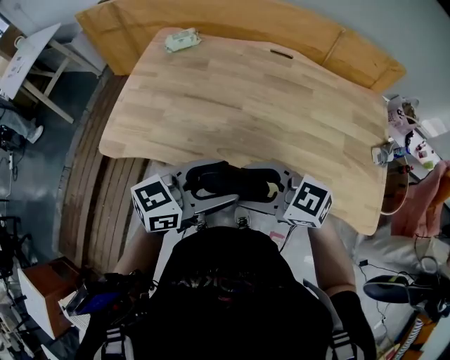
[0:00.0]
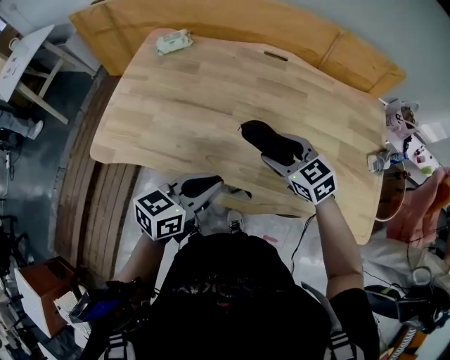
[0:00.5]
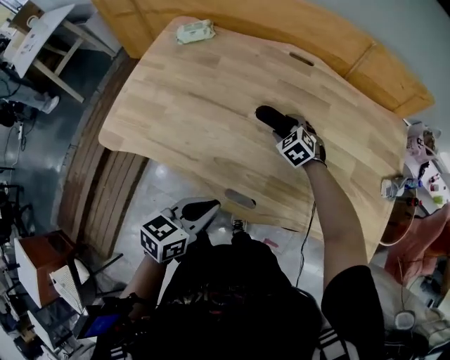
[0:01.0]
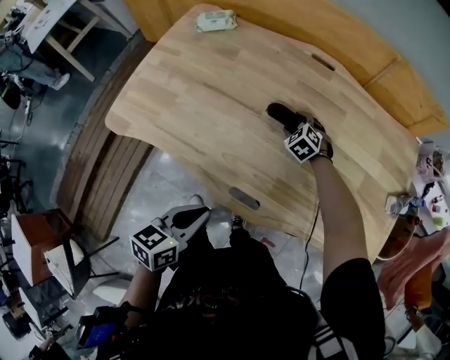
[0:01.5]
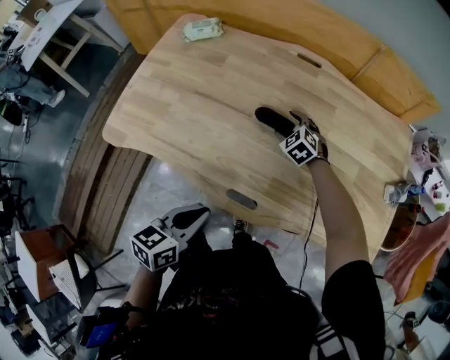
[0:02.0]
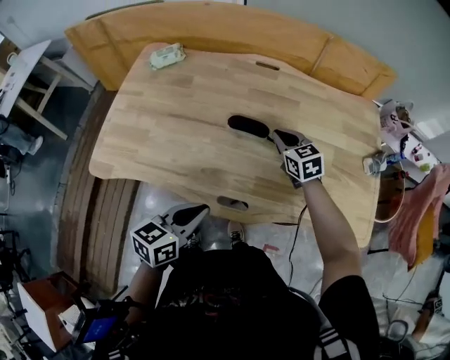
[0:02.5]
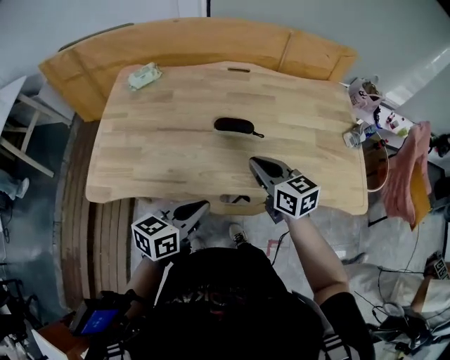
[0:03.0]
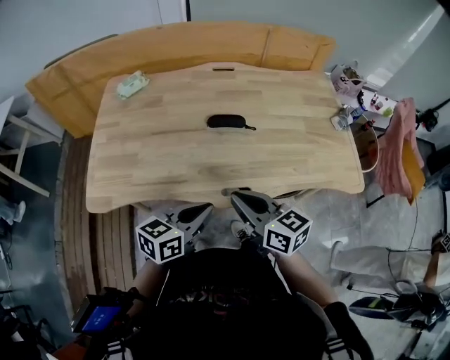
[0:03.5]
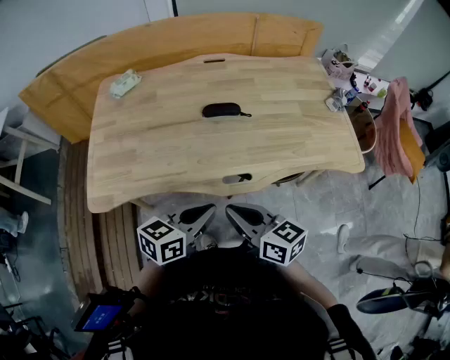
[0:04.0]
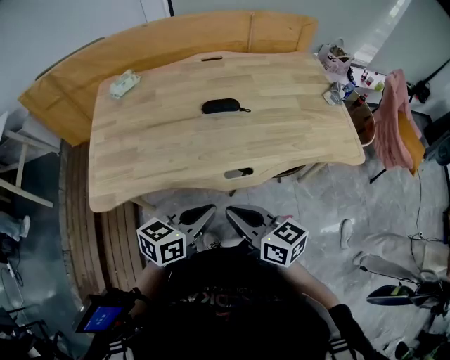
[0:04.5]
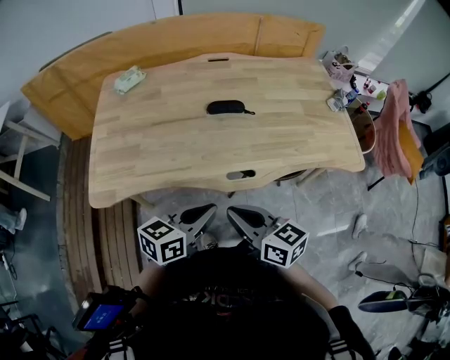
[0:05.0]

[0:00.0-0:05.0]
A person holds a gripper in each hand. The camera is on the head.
0:00.0 to 0:02.5: The right gripper changes place by about 30 cm, swivels some 50 degrees, and closes its fingers. Meanwhile the left gripper moves downward, some 10 cm, rotates about 30 degrees, and closes up.
0:02.5 to 0:05.0: The left gripper shifts about 10 cm backward, and turns by approximately 20 degrees. The right gripper goes some 40 cm backward, and swivels about 40 degrees.

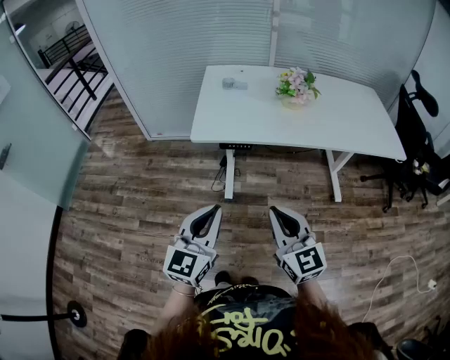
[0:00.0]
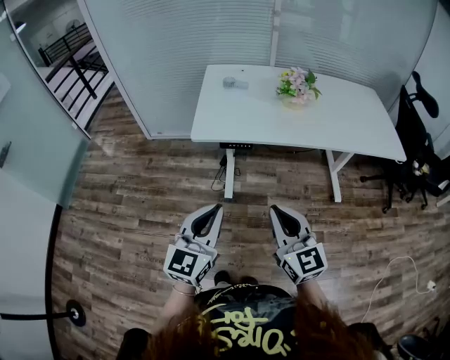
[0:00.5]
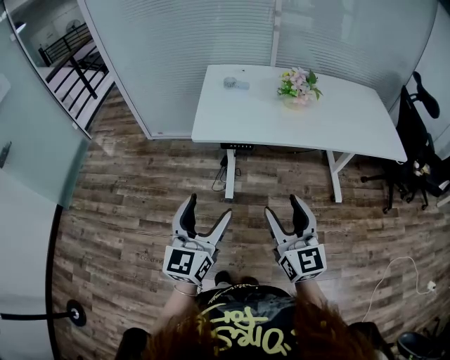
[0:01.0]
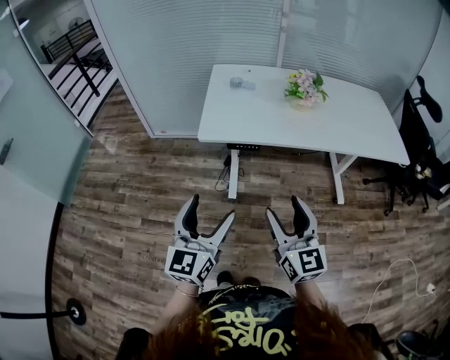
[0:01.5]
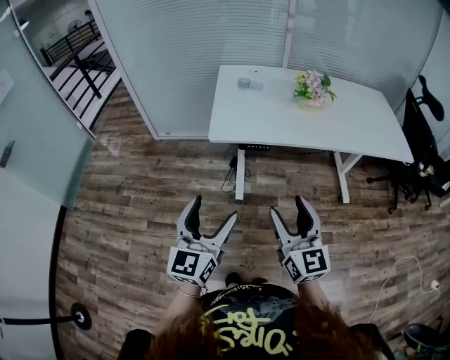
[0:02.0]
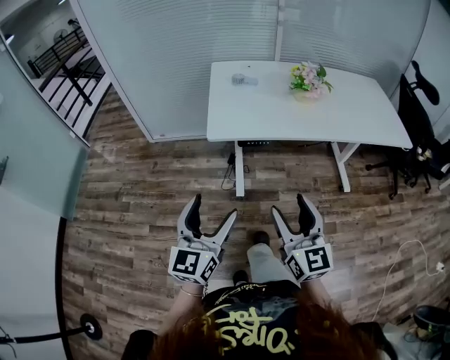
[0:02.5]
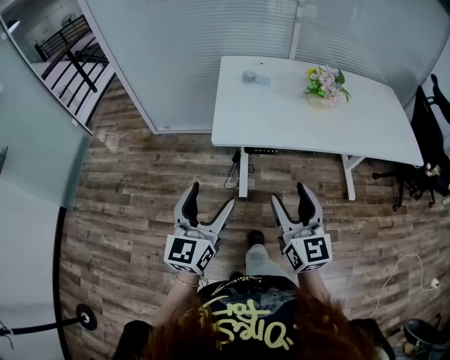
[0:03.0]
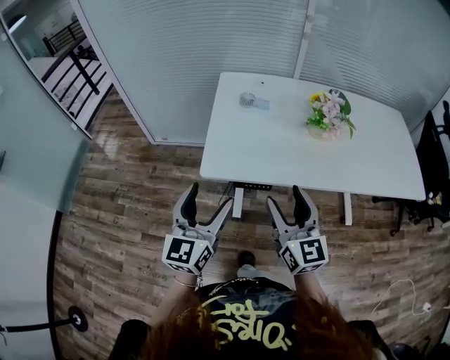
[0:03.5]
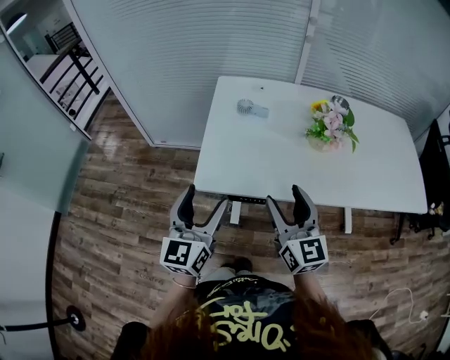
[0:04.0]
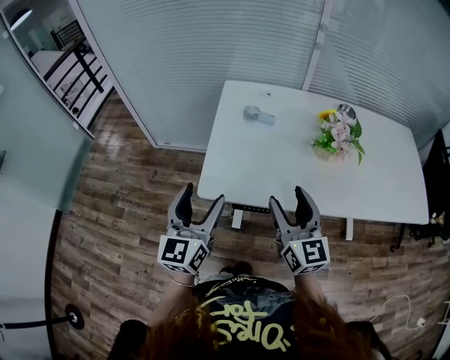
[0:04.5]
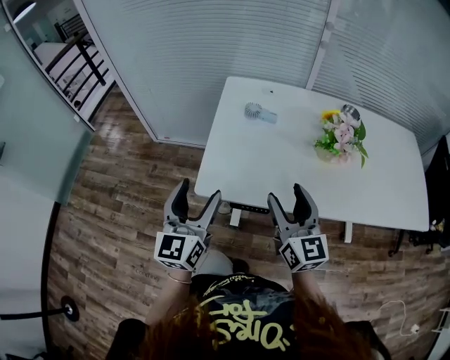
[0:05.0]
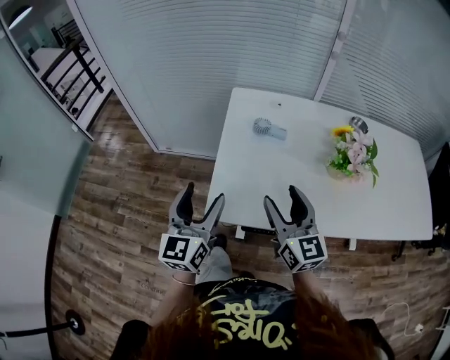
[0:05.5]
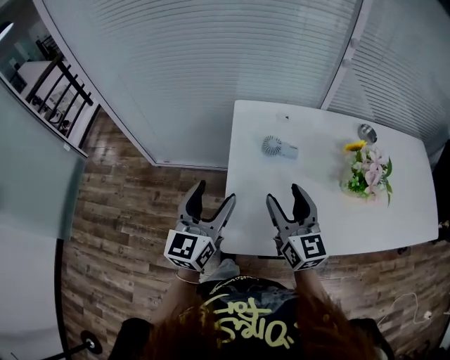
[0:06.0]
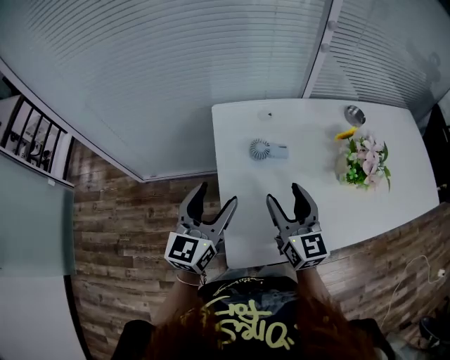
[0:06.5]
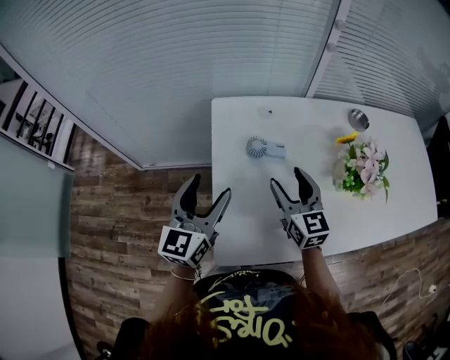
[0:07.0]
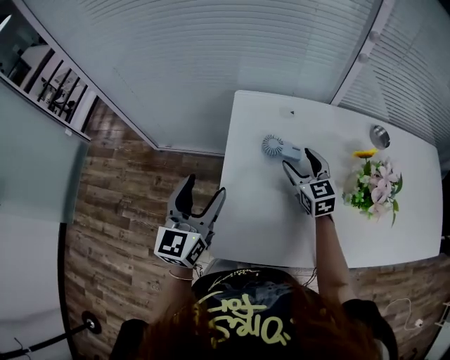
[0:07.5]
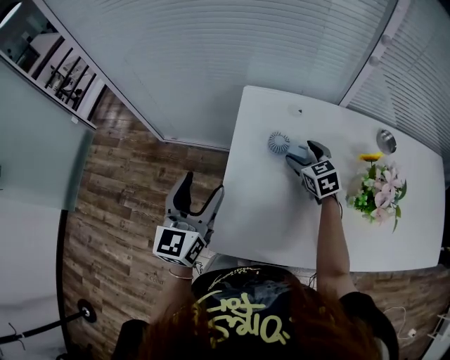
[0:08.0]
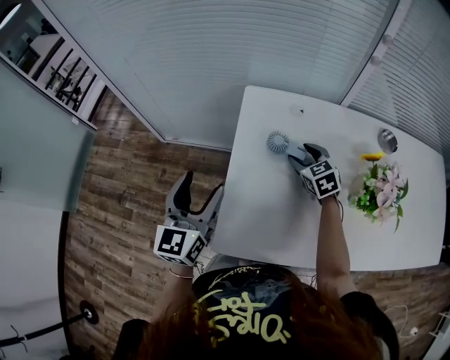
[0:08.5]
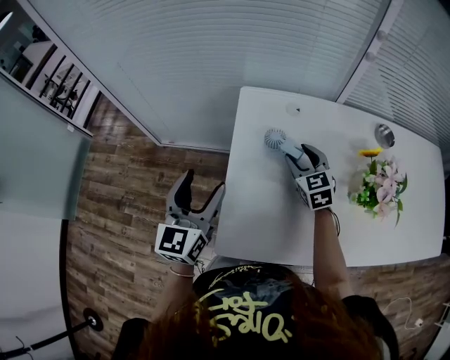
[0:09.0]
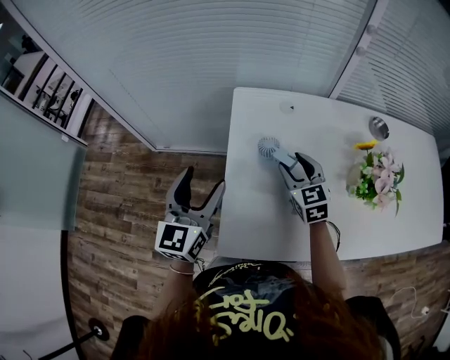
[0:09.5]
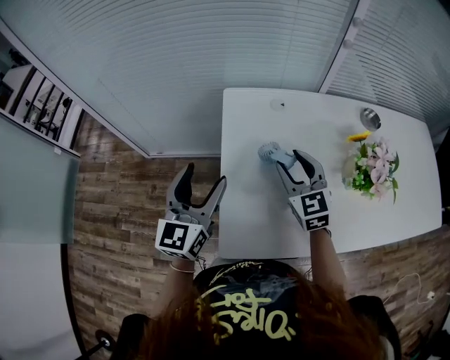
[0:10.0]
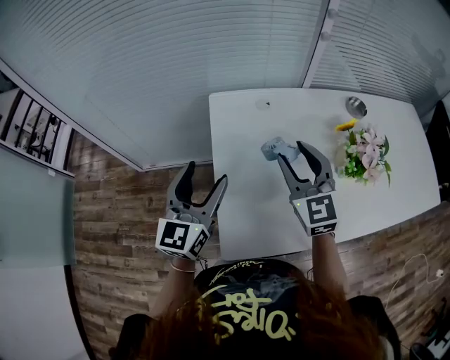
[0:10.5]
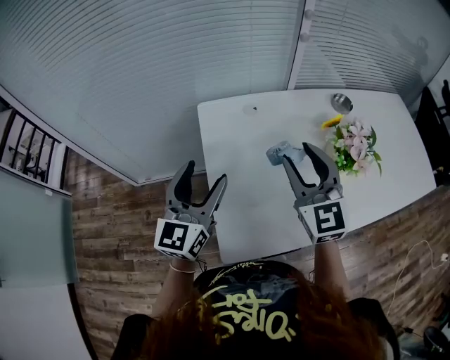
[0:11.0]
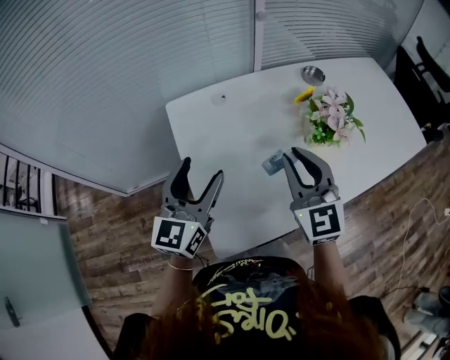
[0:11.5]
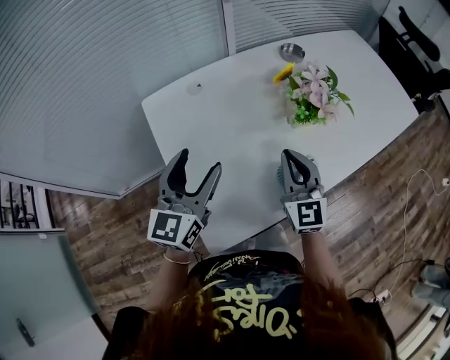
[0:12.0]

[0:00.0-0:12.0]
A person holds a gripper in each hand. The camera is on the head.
0:00.0 to 0:02.0: The right gripper shifts by some 5 cm, and opens up. The left gripper heads to the left, covering roughly 10 cm, and opens up.
0:02.0 to 0:04.0: Both grippers travel together forward, some 30 cm.
0:04.0 to 0:06.0: The left gripper heads forward, covering some 25 cm. The right gripper travels forward and to the left by roughly 25 cm.
0:06.0 to 0:08.0: The right gripper shifts about 25 cm forward and downward, and points its fingers about 30 degrees further downward.
0:08.0 to 0:10.0: The right gripper moves upward and backward, roughly 10 cm, changes its angle by roughly 20 degrees, and closes its fingers.
0:10.0 to 0:12.0: The left gripper ends up about 15 cm from where it was, and changes its angle by some 30 degrees; the right gripper goes upward and returns, about 10 cm each way, turns by approximately 40 degrees, and closes.

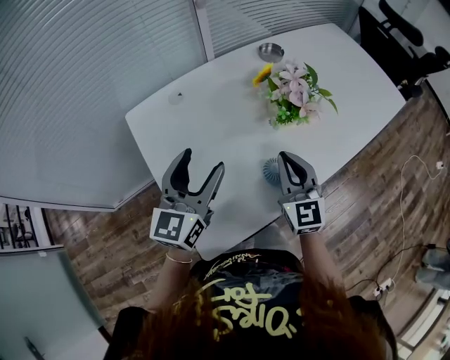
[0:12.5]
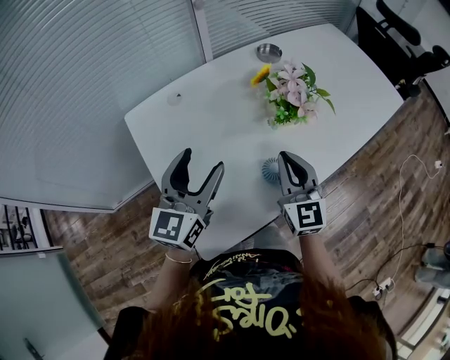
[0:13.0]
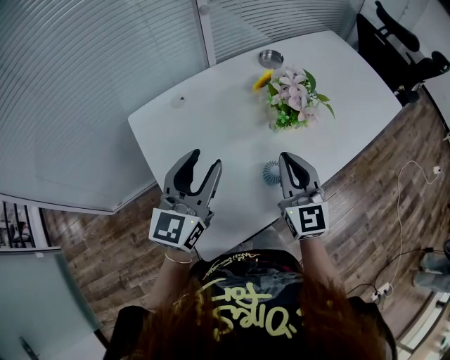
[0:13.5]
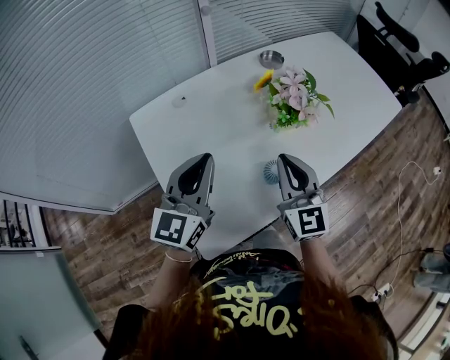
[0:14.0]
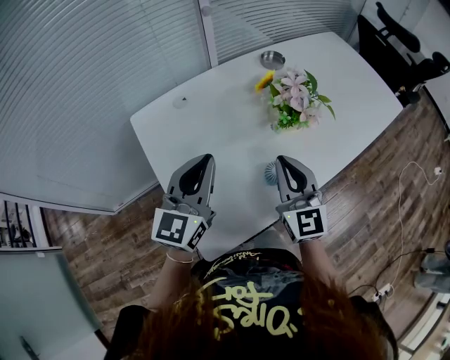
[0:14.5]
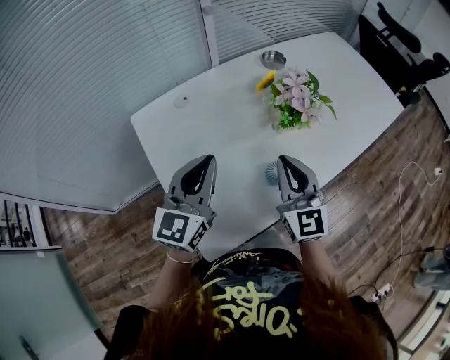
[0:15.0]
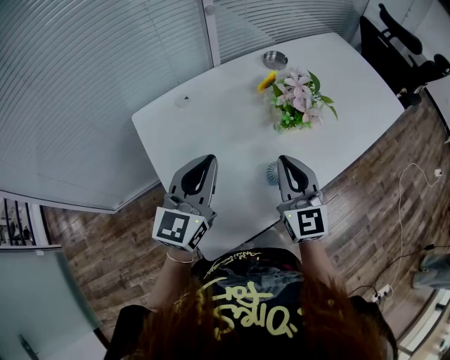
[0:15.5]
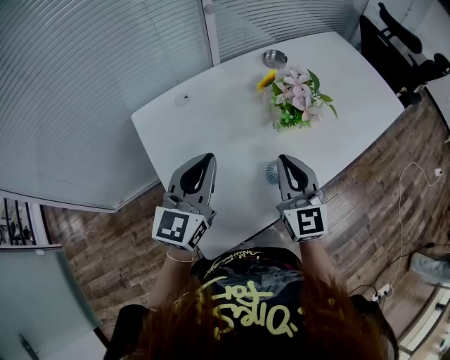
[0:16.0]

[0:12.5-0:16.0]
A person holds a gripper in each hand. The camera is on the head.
0:12.5 to 0:14.5: The left gripper closes; the right gripper ends up approximately 5 cm from where it was.
0:14.5 to 0:16.0: Neither gripper changes place.

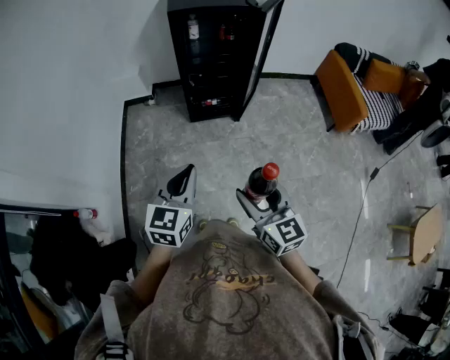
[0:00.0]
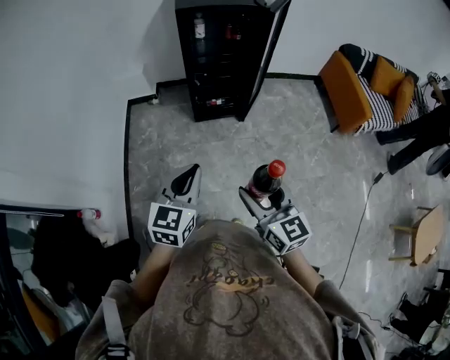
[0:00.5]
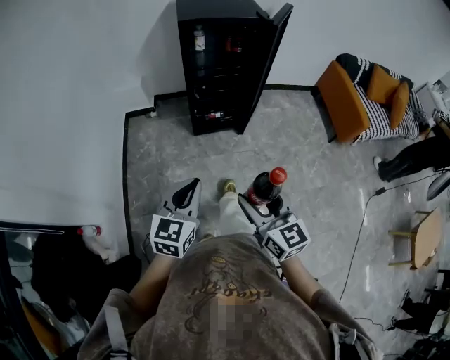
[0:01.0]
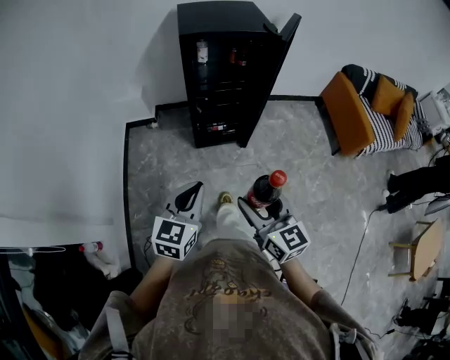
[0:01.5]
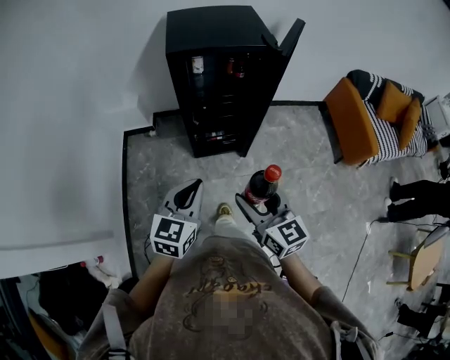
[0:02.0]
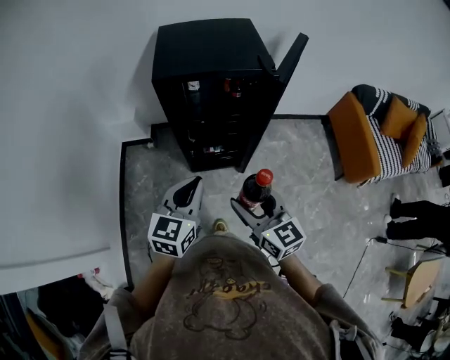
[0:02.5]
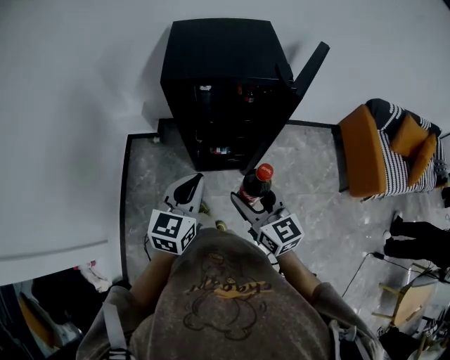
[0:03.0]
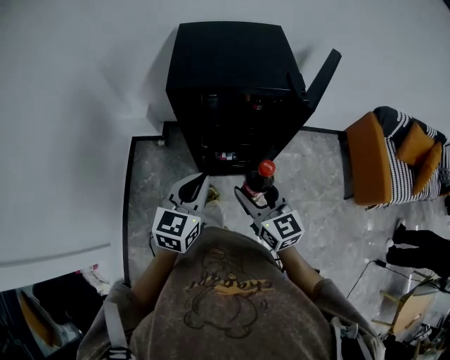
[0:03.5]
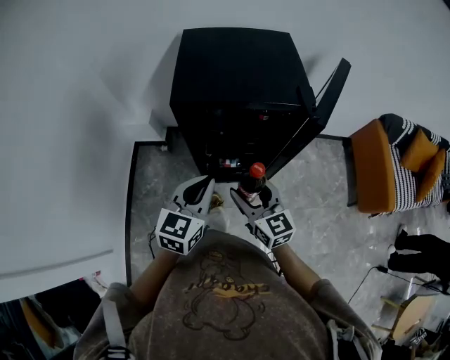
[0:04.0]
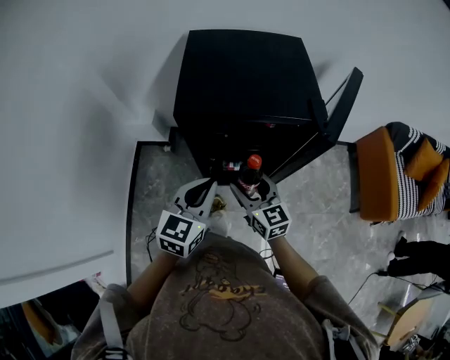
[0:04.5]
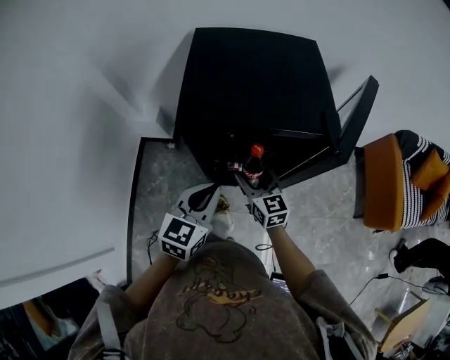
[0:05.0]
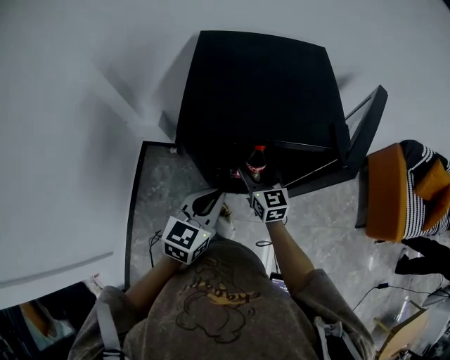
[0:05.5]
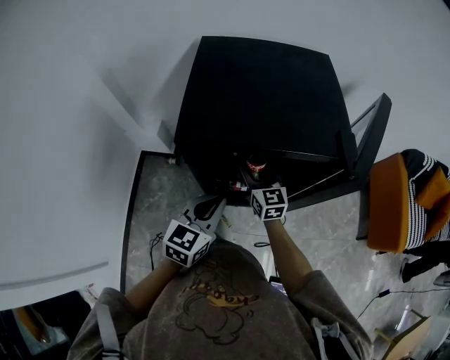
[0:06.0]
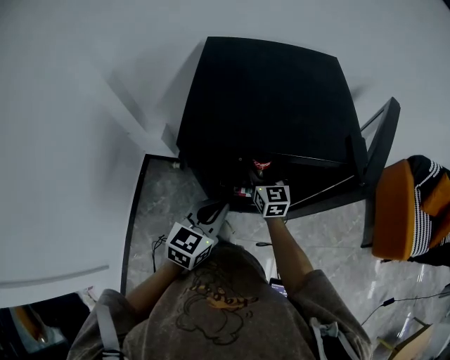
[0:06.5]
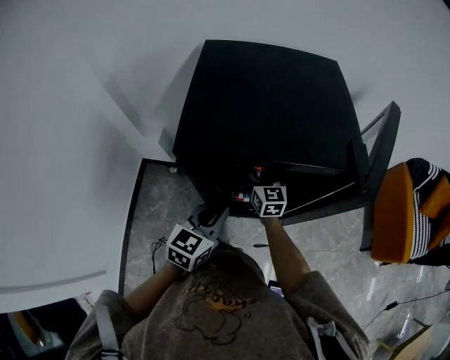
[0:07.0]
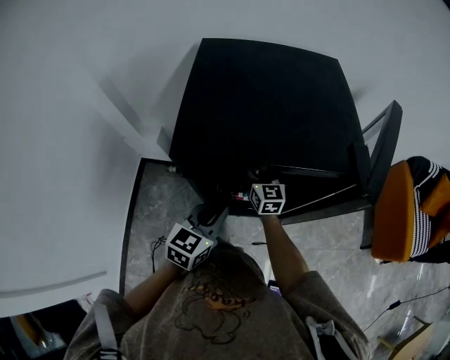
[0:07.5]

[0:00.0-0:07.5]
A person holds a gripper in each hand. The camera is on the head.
0:00.0 to 0:02.0: The grippers both shift forward by roughly 25 cm.
0:02.0 to 0:04.0: The two grippers go some 25 cm forward.
0:04.0 to 0:05.5: The left gripper heads forward and downward, covering approximately 10 cm. Meanwhile the right gripper is displaced forward and downward by roughly 20 cm.
0:05.5 to 0:07.5: The left gripper goes roughly 10 cm downward. Meanwhile the right gripper goes some 15 cm forward and downward.
